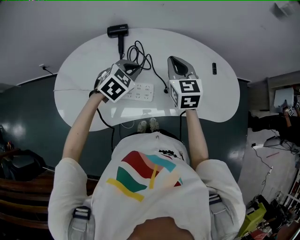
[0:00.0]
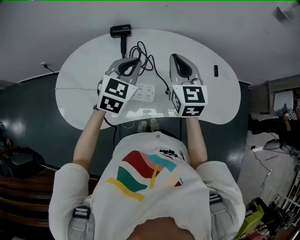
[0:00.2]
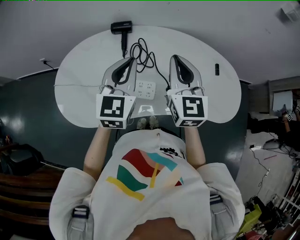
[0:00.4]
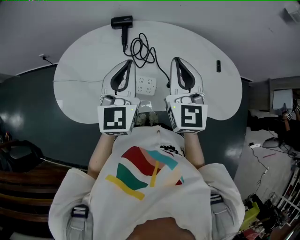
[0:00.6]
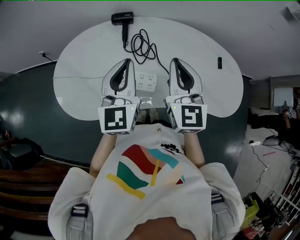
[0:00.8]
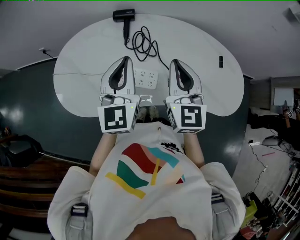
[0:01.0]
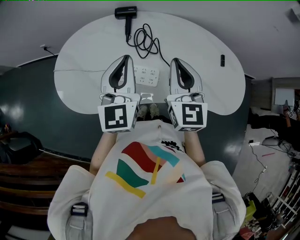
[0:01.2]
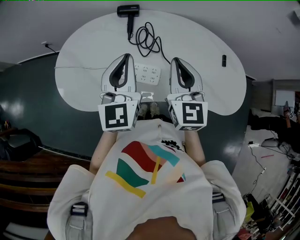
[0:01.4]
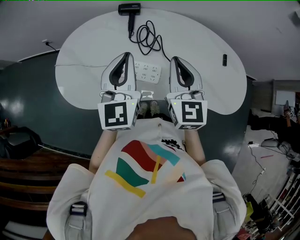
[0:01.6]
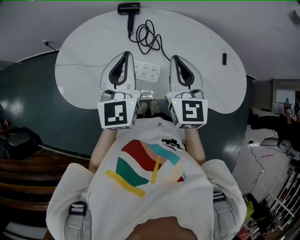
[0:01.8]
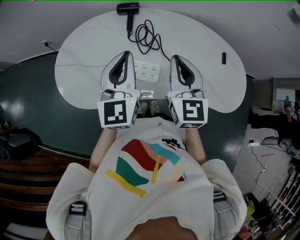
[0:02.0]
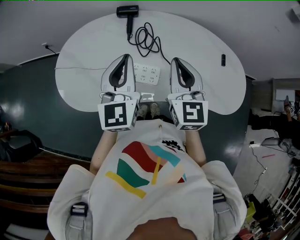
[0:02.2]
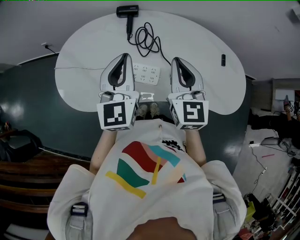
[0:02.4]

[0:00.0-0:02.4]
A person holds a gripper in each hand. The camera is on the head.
0:00.0 to 0:01.2: The right gripper shifts roughly 10 cm backward and upward; the left gripper goes about 15 cm upward, backward and to the left, and tilts its fingers some 50 degrees upward.
0:01.2 to 0:02.4: Neither gripper changes place.

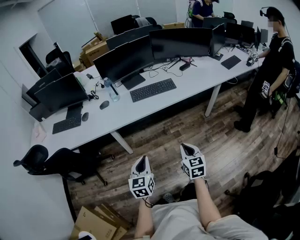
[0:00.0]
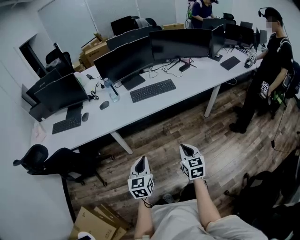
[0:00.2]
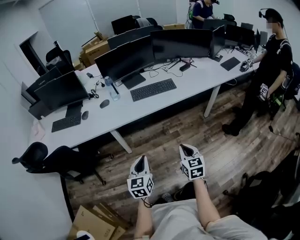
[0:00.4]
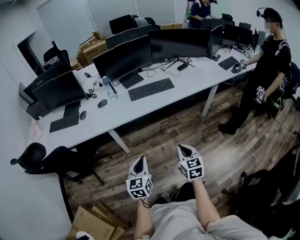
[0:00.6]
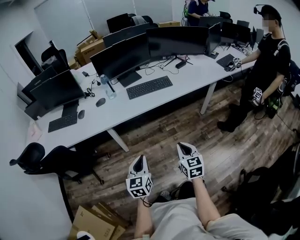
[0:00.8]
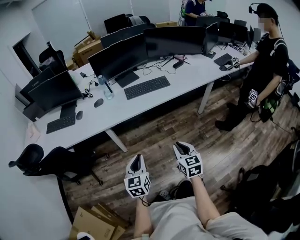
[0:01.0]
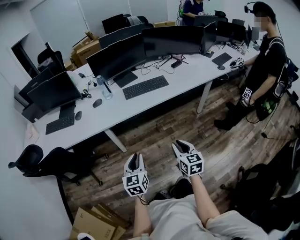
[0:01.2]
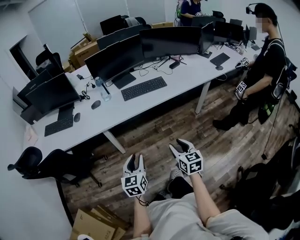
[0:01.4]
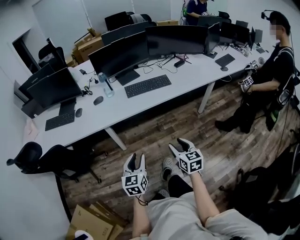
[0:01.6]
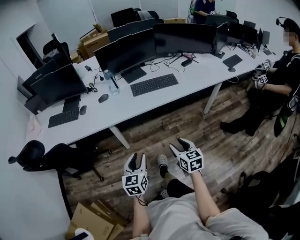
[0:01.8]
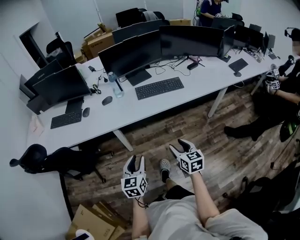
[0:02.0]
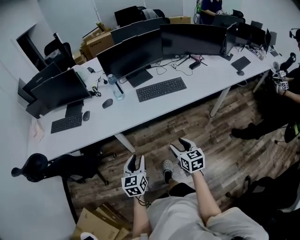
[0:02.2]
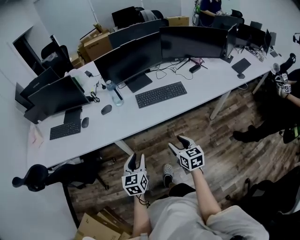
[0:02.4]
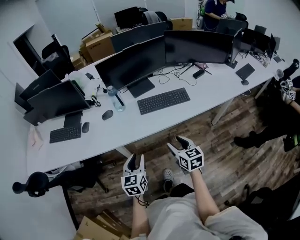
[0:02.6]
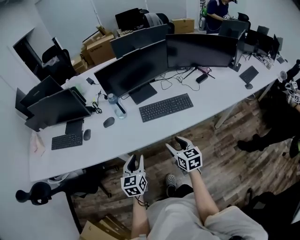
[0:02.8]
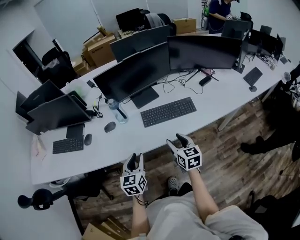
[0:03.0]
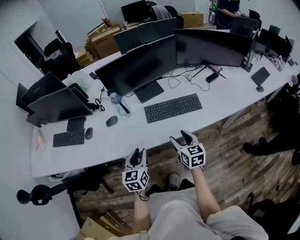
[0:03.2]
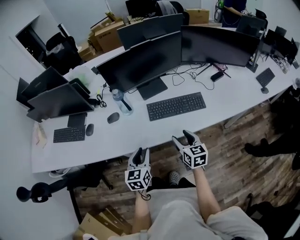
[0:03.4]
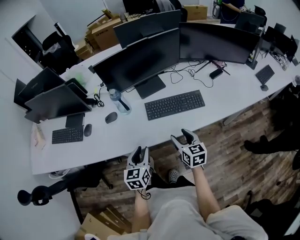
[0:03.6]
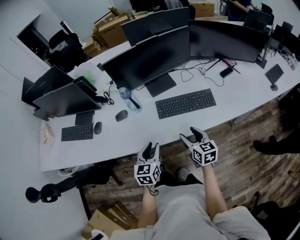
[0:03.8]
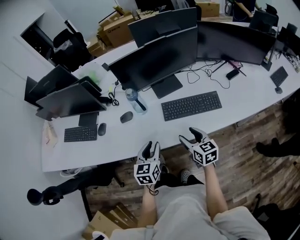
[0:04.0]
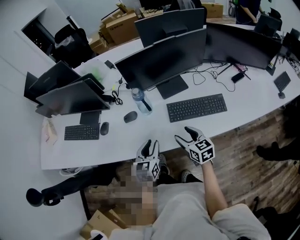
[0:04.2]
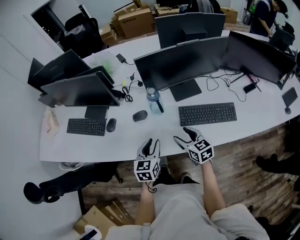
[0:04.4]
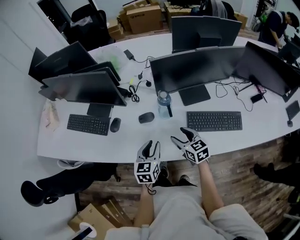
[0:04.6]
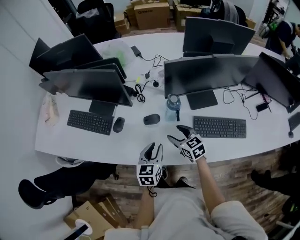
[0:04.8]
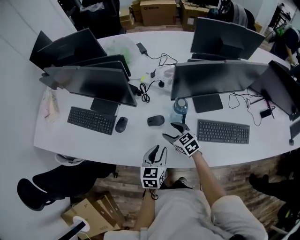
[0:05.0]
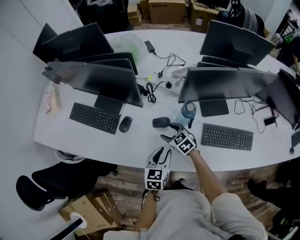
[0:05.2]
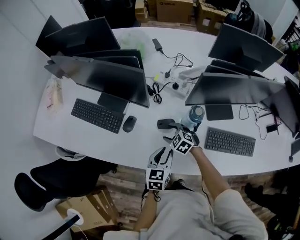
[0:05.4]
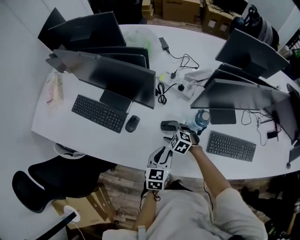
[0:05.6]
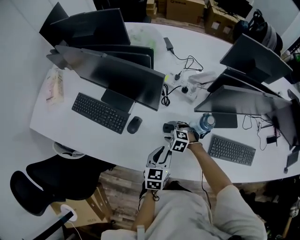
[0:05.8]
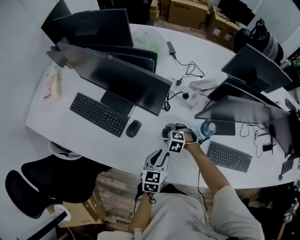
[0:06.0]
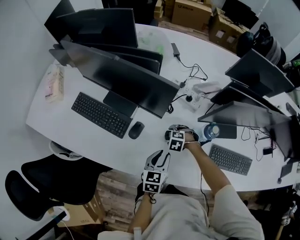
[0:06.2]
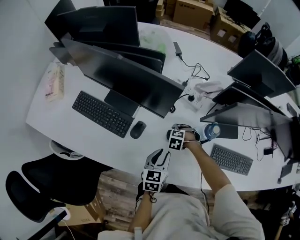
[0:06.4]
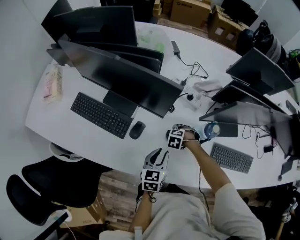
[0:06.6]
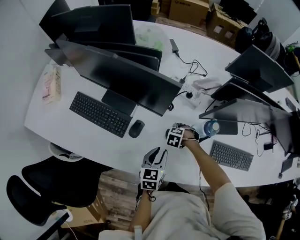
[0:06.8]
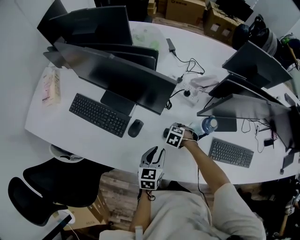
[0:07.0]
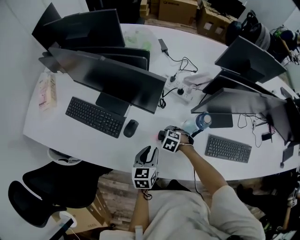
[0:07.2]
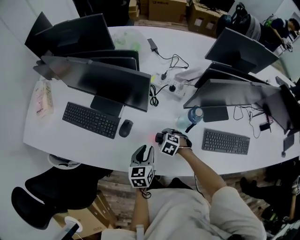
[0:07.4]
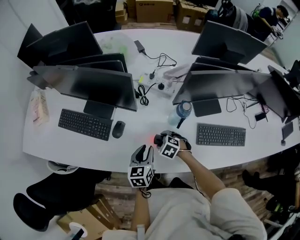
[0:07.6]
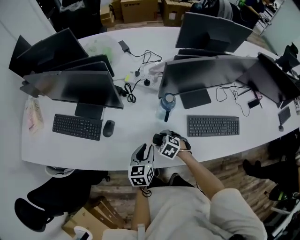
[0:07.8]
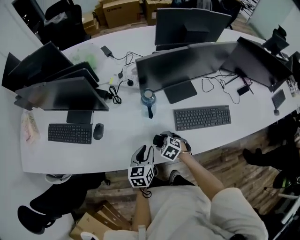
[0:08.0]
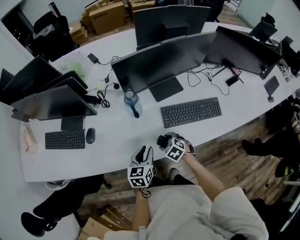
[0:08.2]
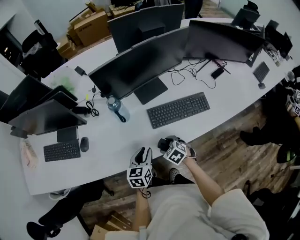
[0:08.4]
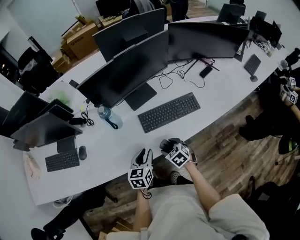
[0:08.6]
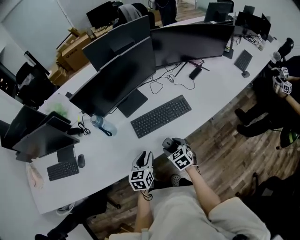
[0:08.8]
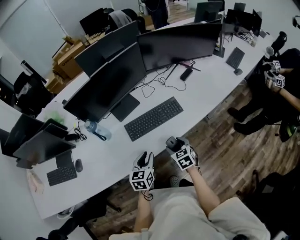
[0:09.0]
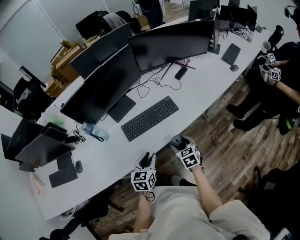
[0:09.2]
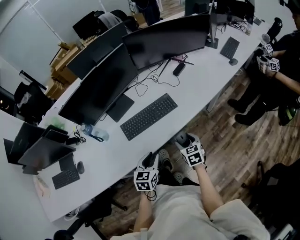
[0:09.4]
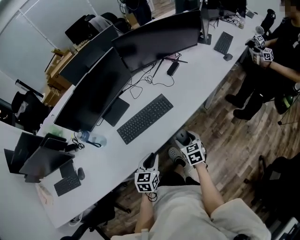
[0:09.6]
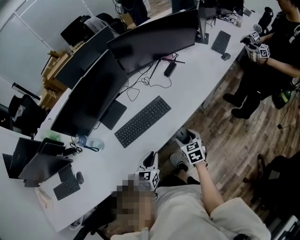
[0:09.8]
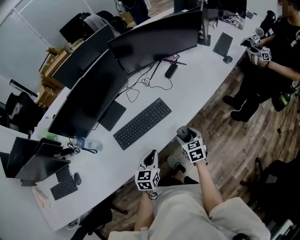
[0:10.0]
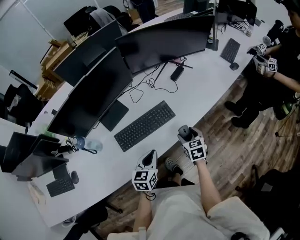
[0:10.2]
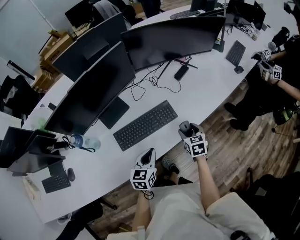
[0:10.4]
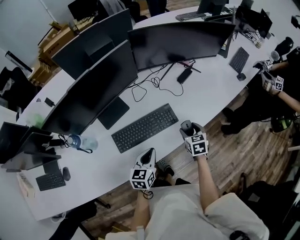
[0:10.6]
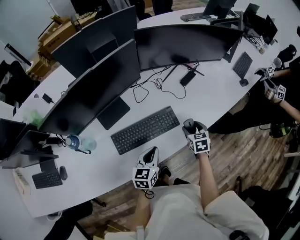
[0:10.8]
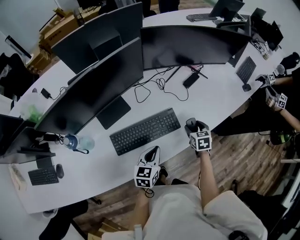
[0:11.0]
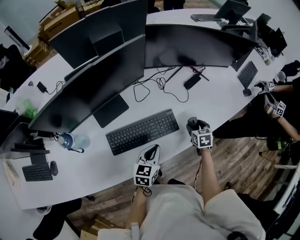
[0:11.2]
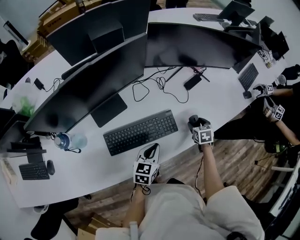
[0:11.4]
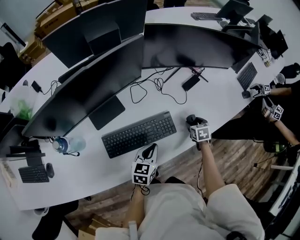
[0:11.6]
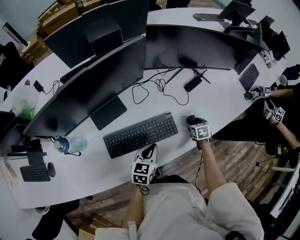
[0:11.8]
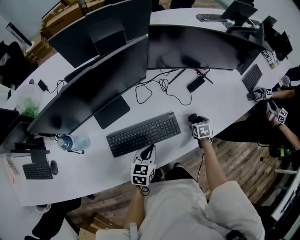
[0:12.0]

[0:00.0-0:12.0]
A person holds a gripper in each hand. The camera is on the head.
0:00.0 to 0:01.6: The right gripper opens its fingers. The left gripper opens up.
0:01.6 to 0:03.0: The two grippers go approximately 35 cm forward.
0:03.0 to 0:04.4: The right gripper moves to the left and forward, some 20 cm, and rotates roughly 20 degrees. Meanwhile the left gripper goes approximately 20 cm forward and to the left.
0:04.4 to 0:06.0: The left gripper travels forward, to the left and downward by approximately 20 cm. The right gripper shifts roughly 40 cm forward, to the left and downward, and points its fingers roughly 50 degrees further downward.
0:06.0 to 0:07.6: The right gripper shifts by some 10 cm, and rotates approximately 30 degrees.
0:07.6 to 0:09.0: The two grippers travel together, roughly 50 cm. The left gripper turns by approximately 30 degrees. Meanwhile the right gripper rotates about 70 degrees.
0:09.0 to 0:10.4: The right gripper heads forward and to the right, covering approximately 20 cm, while the left gripper goes roughly 15 cm forward and to the right, and closes its fingers.
0:10.4 to 0:12.0: The left gripper shifts roughly 15 cm forward and downward; the right gripper travels forward and downward by approximately 25 cm.

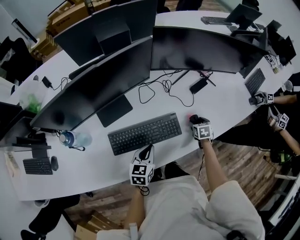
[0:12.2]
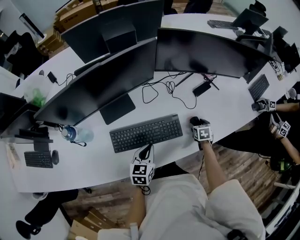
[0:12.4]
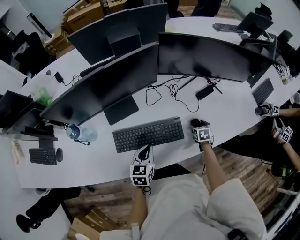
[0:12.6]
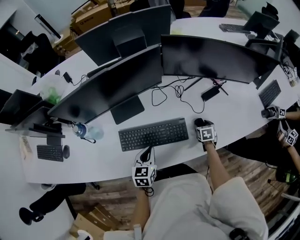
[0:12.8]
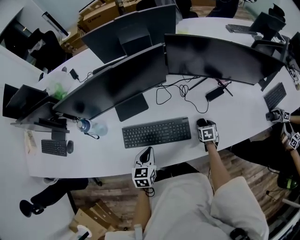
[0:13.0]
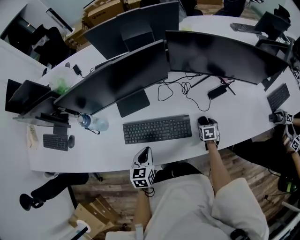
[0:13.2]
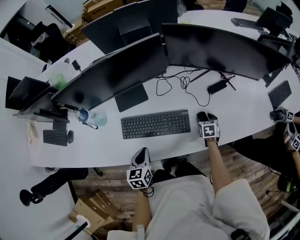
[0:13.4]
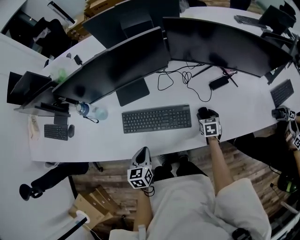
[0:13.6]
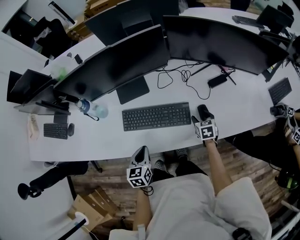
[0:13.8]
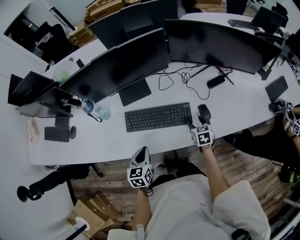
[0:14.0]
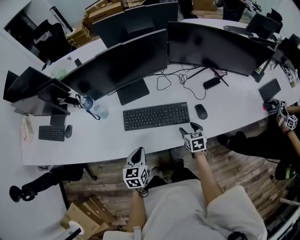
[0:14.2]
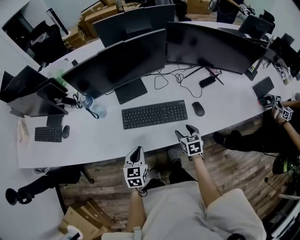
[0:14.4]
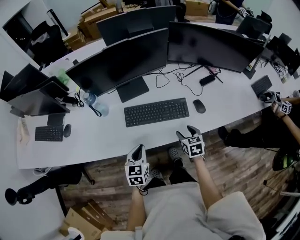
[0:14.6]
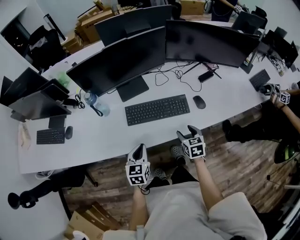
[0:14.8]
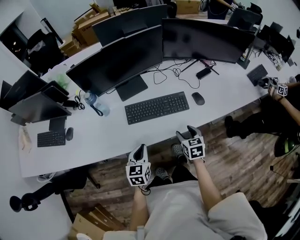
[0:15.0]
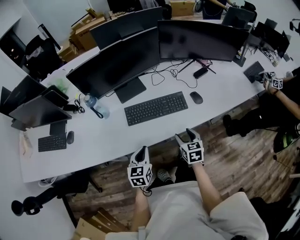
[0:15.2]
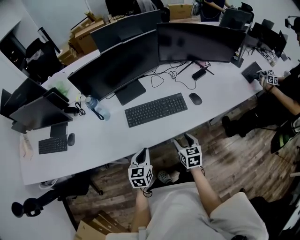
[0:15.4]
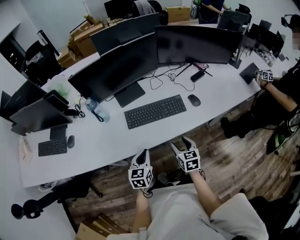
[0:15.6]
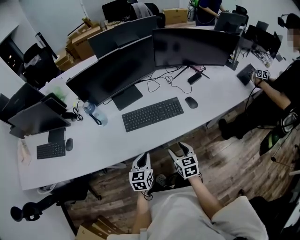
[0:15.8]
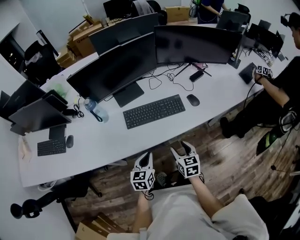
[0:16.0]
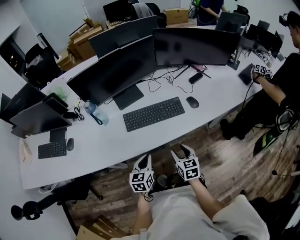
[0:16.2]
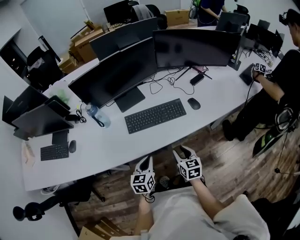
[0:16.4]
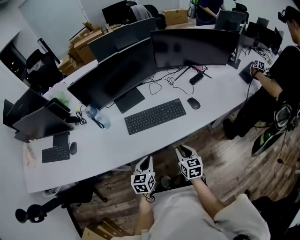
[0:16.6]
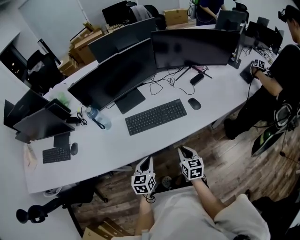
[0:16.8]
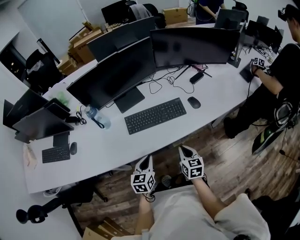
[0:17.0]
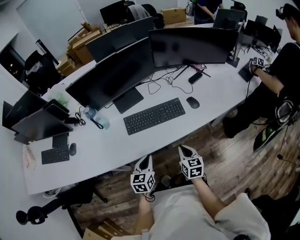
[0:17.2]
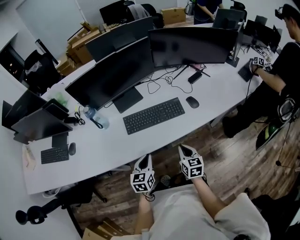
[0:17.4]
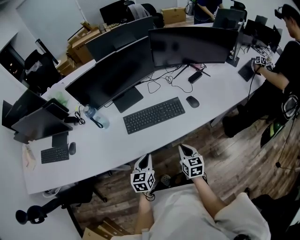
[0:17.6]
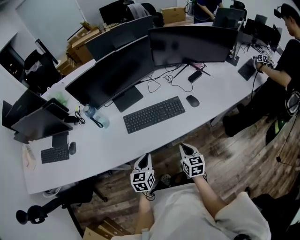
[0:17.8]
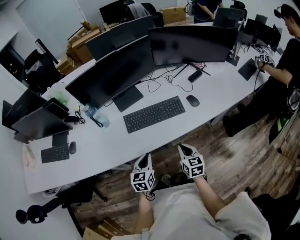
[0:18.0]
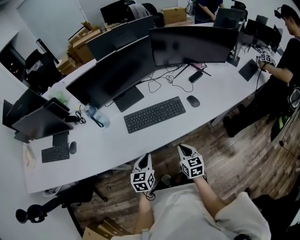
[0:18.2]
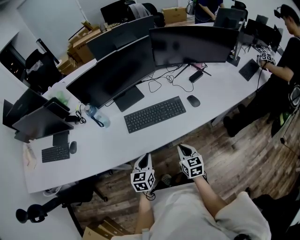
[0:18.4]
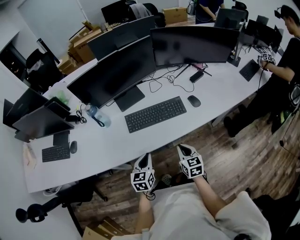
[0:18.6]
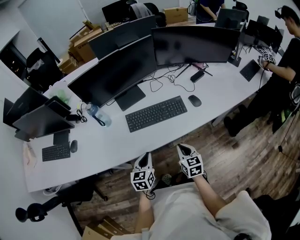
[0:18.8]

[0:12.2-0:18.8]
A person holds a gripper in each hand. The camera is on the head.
0:12.2 to 0:13.8: The right gripper changes place by approximately 10 cm, and changes its angle by roughly 20 degrees, while the left gripper shifts by roughly 10 cm, and swivels about 30 degrees.
0:13.8 to 0:15.4: The left gripper goes approximately 15 cm backward and to the left, while the right gripper moves backward and to the left, approximately 30 cm.
0:15.4 to 0:17.2: The right gripper closes up.
0:17.2 to 0:18.8: The grippers make only small movements.

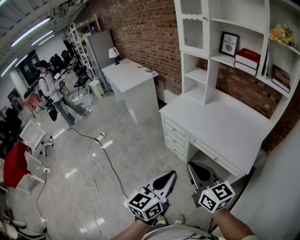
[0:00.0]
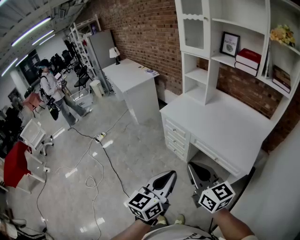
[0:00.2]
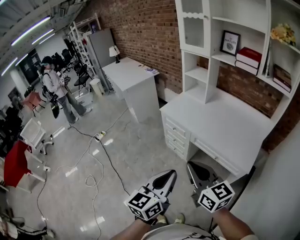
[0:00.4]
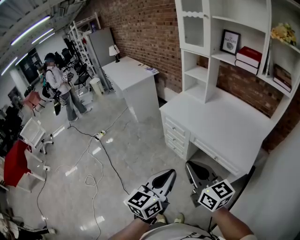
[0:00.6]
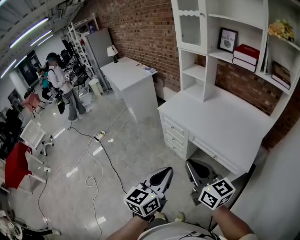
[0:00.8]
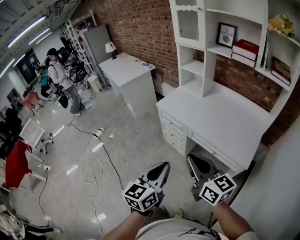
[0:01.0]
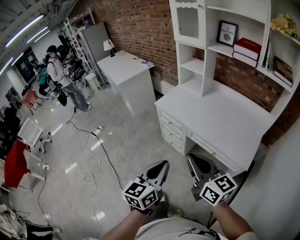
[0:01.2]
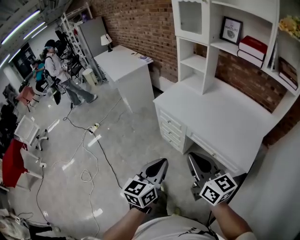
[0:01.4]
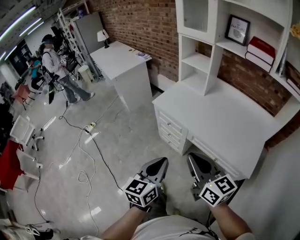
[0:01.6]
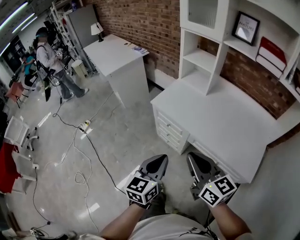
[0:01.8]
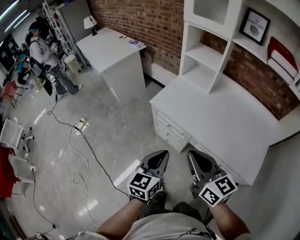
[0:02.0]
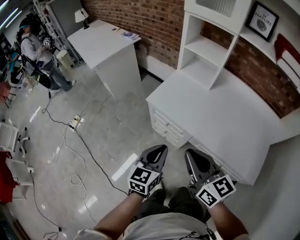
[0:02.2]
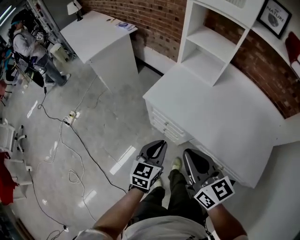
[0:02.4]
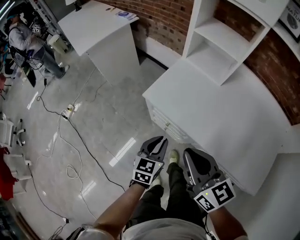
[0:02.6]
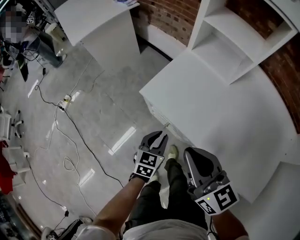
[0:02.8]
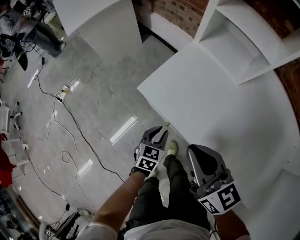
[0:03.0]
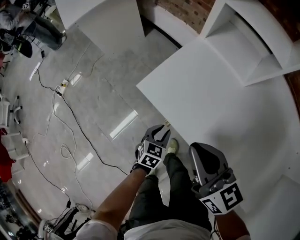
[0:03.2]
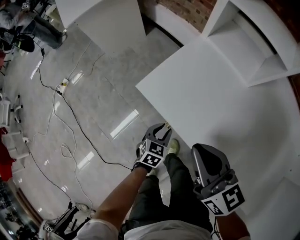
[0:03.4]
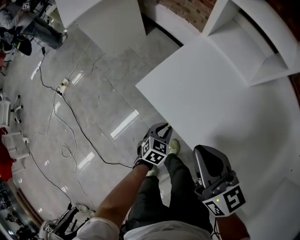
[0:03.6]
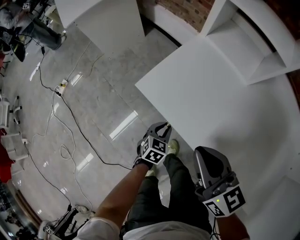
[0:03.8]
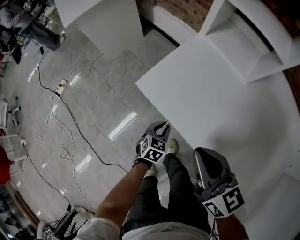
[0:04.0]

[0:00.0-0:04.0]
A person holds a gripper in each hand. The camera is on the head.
0:00.0 to 0:01.4: The right gripper goes approximately 5 cm forward. Meanwhile the left gripper is displaced forward and downward by some 10 cm.
0:01.4 to 0:02.6: The left gripper travels forward and downward by approximately 50 cm; the right gripper moves forward, roughly 35 cm.
0:02.6 to 0:04.0: The left gripper travels downward by roughly 25 cm, and turns by some 20 degrees. The right gripper is displaced downward and forward by roughly 15 cm.
